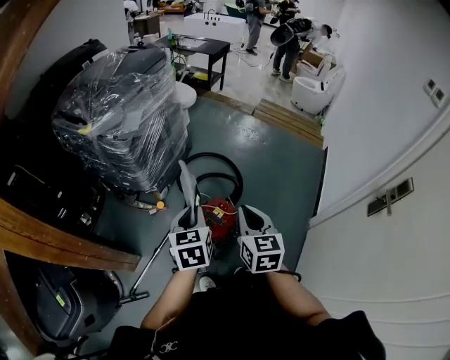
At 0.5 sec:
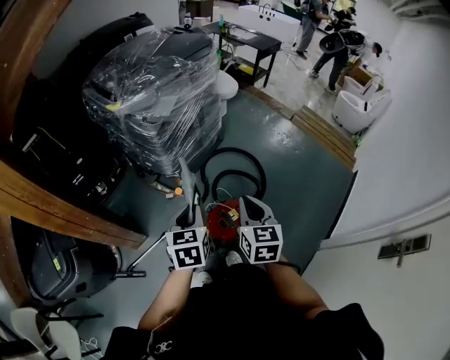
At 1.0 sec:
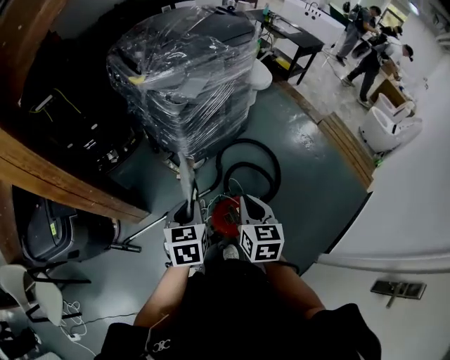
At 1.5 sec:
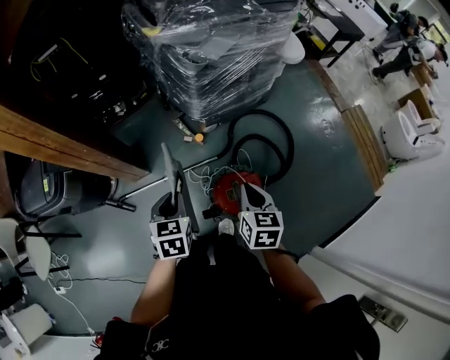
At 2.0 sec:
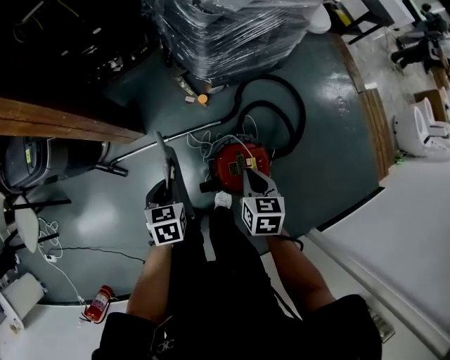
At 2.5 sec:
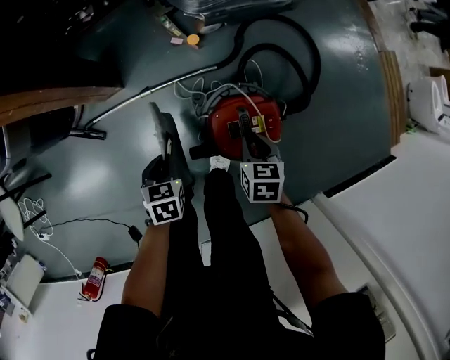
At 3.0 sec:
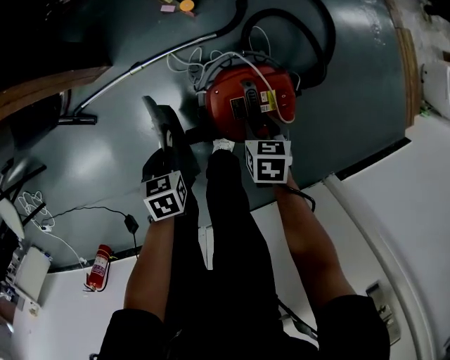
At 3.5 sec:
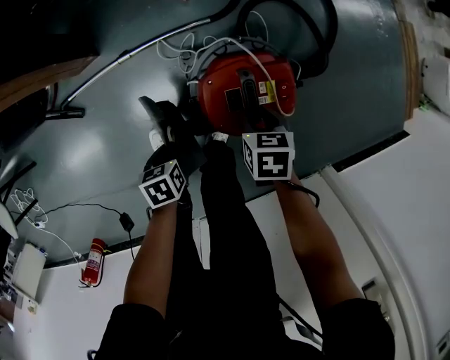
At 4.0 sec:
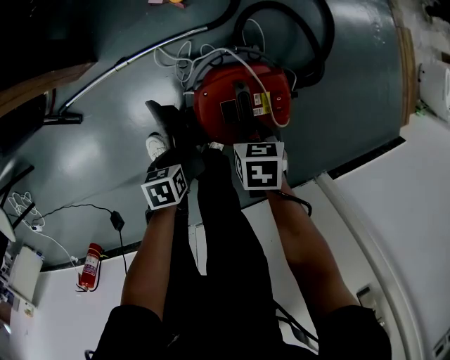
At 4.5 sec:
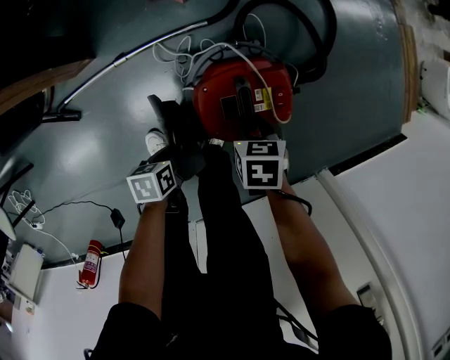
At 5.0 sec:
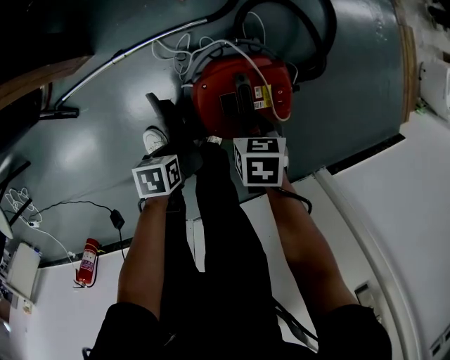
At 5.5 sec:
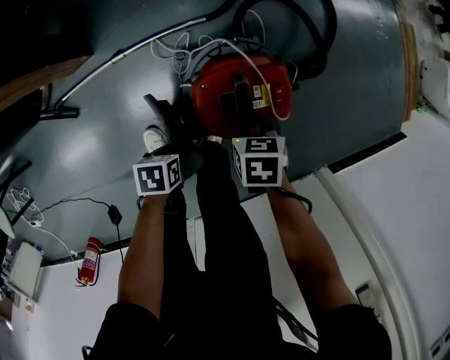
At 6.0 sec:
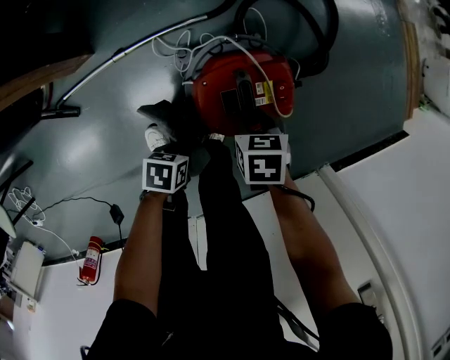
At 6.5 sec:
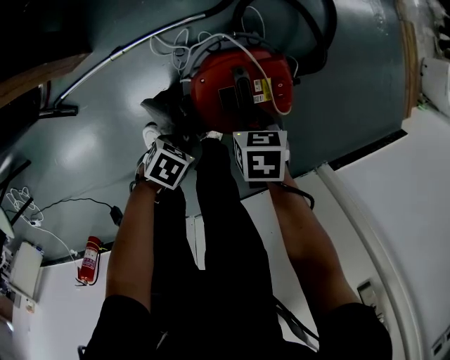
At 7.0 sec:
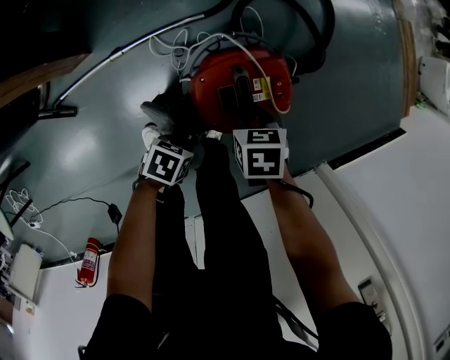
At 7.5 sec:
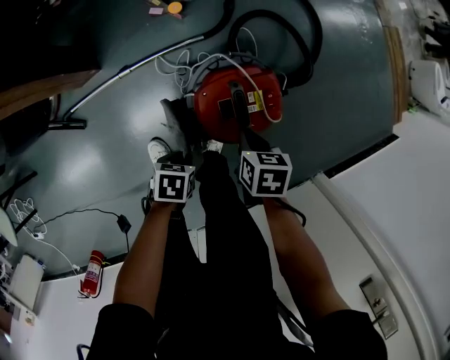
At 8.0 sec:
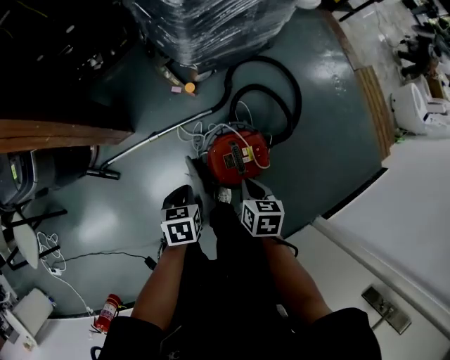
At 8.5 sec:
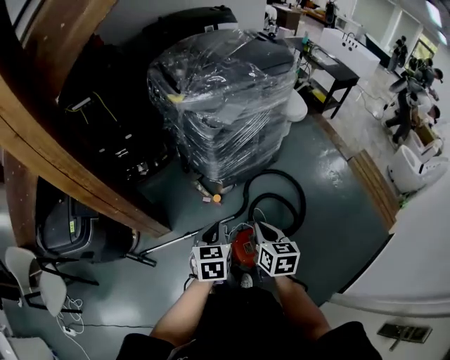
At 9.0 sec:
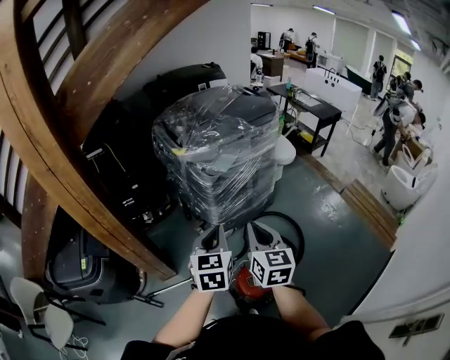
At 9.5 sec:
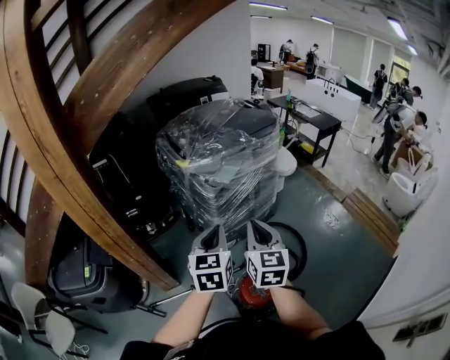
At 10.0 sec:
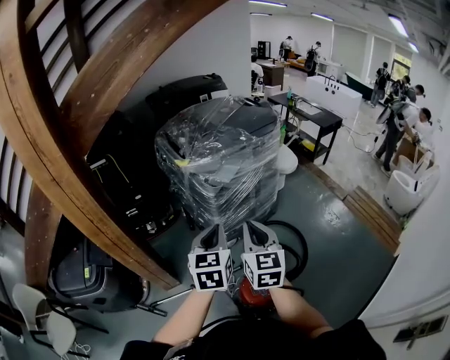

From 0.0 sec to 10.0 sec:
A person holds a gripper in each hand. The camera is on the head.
From 0.0 sec to 2.0 sec: The grippers both shift downward by about 25 cm. The right gripper changes its angle by approximately 50 degrees, while the left gripper rotates some 50 degrees.
From 2.0 sec to 4.0 sec: The grippers both shift downward by approximately 30 cm. The left gripper rotates about 30 degrees; the right gripper swivels about 30 degrees, and opens up.
From 4.0 sec to 6.0 sec: The left gripper turns by approximately 20 degrees.
From 6.0 sec to 8.0 sec: Both grippers travel together upward, some 25 cm. The right gripper rotates approximately 20 degrees, and closes. The left gripper changes its angle by approximately 30 degrees.
From 8.0 sec to 10.0 sec: Both grippers move upward, about 50 cm. The left gripper angles its fingers upward, by approximately 40 degrees, while the right gripper points its fingers approximately 50 degrees further upward.

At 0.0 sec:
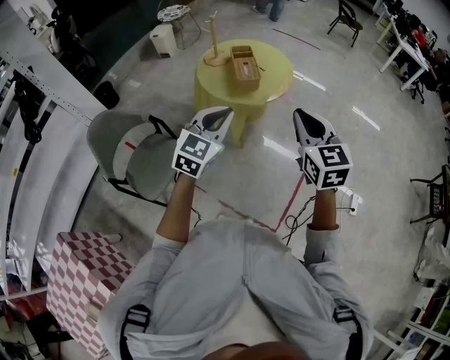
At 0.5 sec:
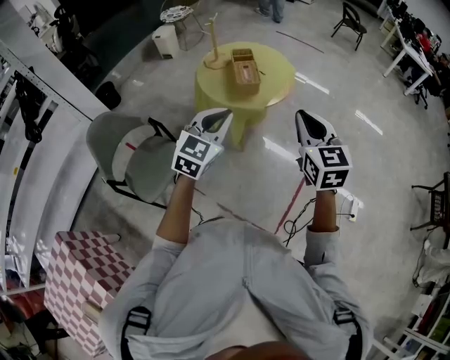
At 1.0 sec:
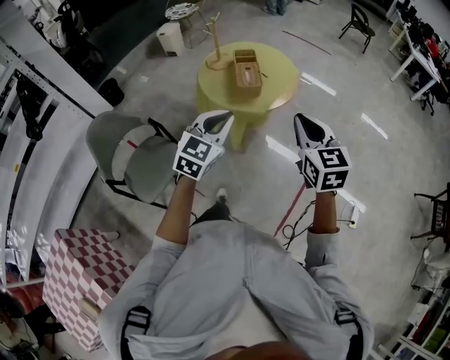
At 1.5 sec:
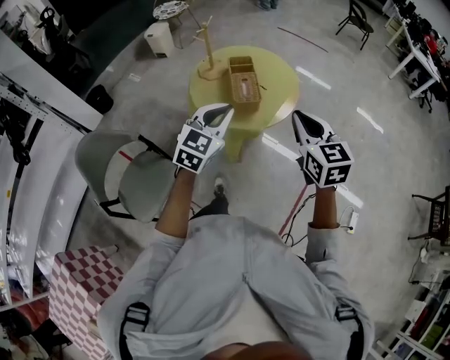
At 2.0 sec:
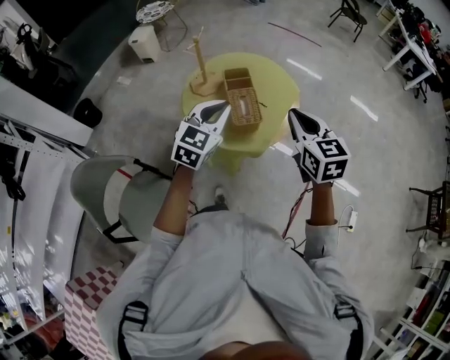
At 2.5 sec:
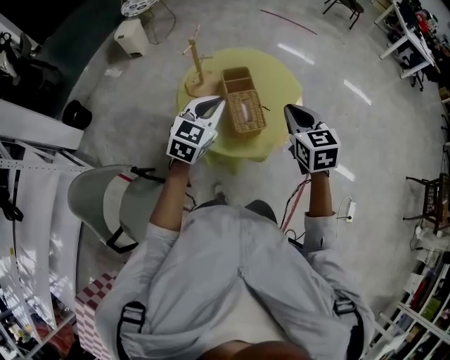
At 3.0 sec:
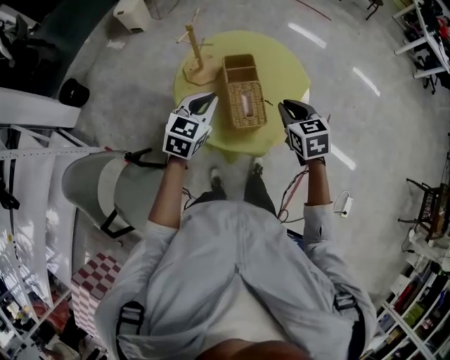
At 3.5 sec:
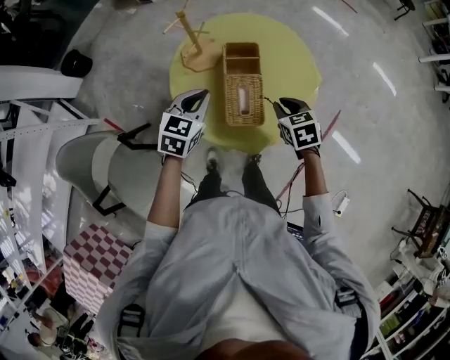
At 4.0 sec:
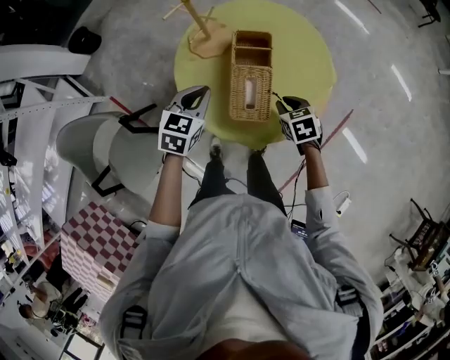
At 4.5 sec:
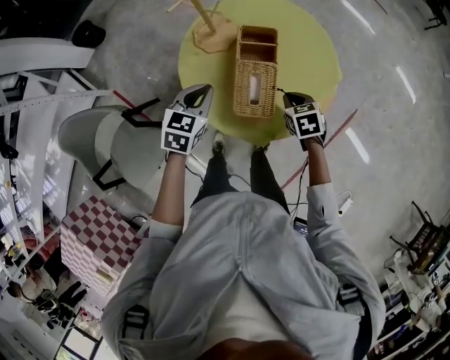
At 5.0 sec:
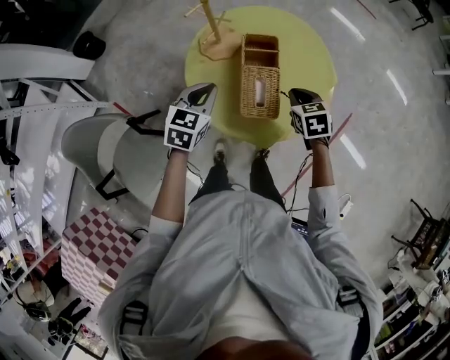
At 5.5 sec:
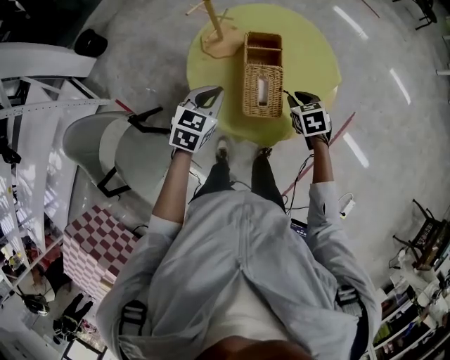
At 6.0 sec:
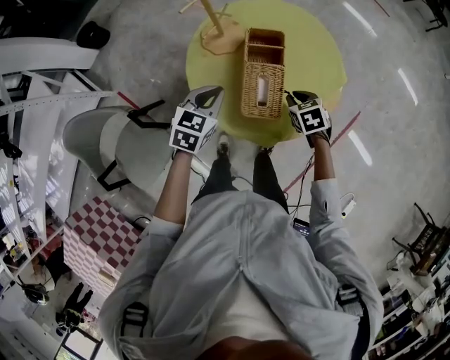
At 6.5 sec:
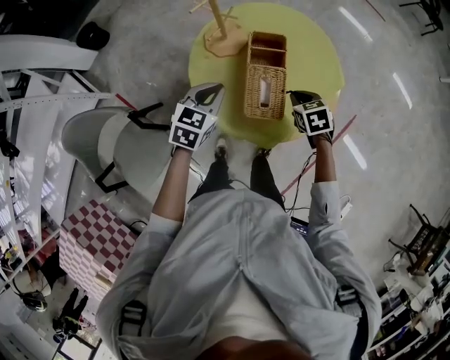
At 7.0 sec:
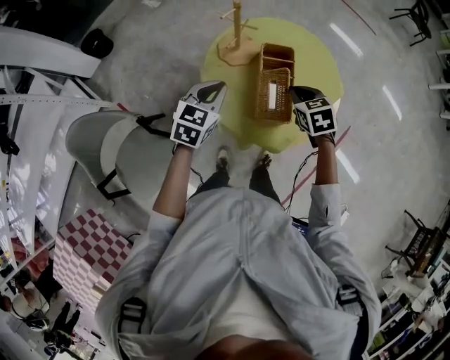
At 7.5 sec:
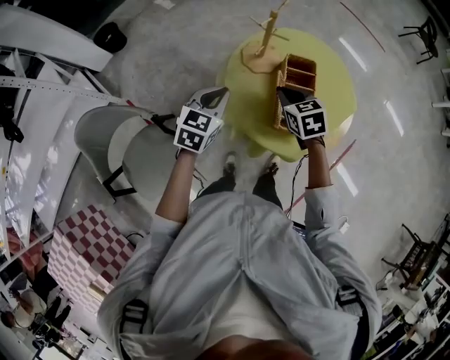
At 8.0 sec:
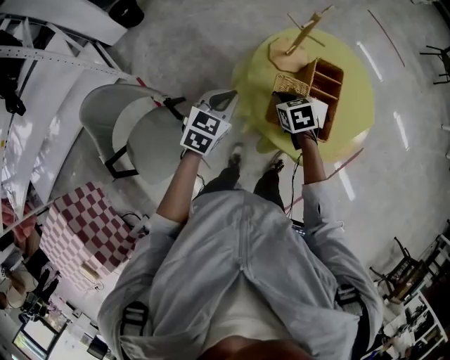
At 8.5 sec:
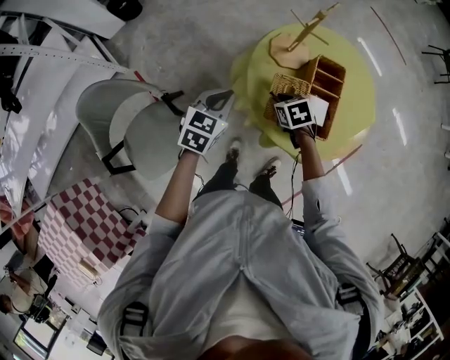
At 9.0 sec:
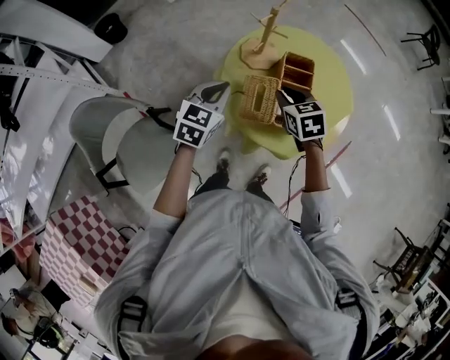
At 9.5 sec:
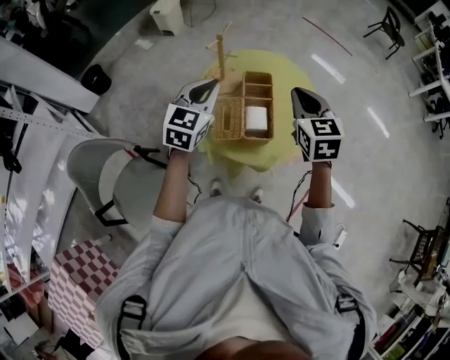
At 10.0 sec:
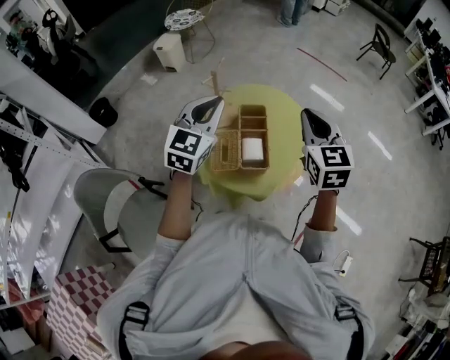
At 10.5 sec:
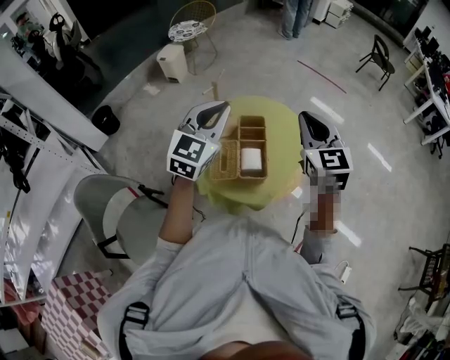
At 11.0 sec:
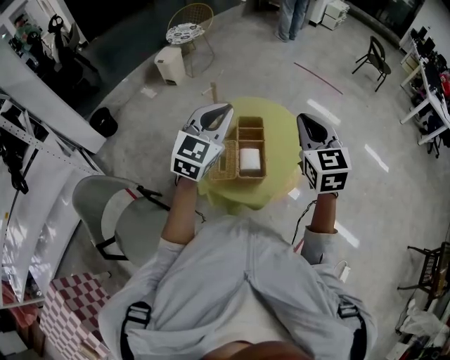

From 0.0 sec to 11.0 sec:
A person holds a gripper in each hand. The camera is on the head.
From 0.0 sec to 2.0 sec: Both grippers move forward, about 35 cm.
From 2.0 sec to 3.5 sec: Both grippers travel together downward and forward, approximately 30 cm. The right gripper tilts its fingers roughly 30 degrees downward. Meanwhile the left gripper swivels roughly 30 degrees.
From 3.5 sec to 5.5 sec: The right gripper goes up and down, approximately 10 cm each way, reversing 2 times.
From 5.5 sec to 7.5 sec: The left gripper shifts roughly 15 cm to the left, while the right gripper heads to the left and upward, covering about 25 cm.
From 7.5 sec to 9.0 sec: The right gripper reaches about 15 cm downward, then returns.
From 9.0 sec to 11.0 sec: The grippers both shift upward and to the right by about 30 cm. The right gripper angles its fingers upward, by approximately 30 degrees, while the left gripper rotates approximately 30 degrees.

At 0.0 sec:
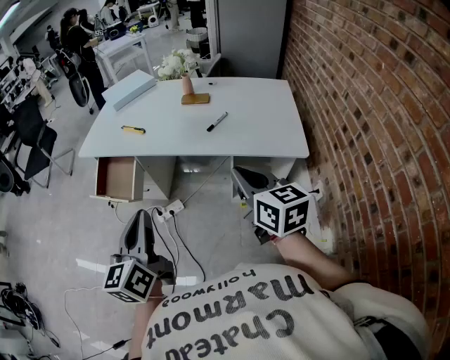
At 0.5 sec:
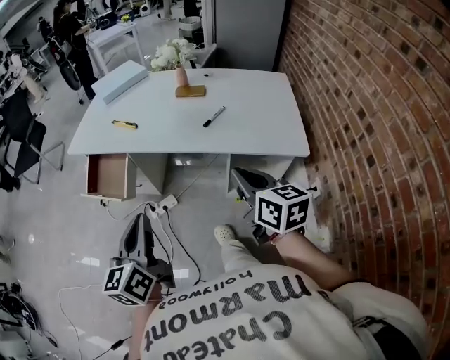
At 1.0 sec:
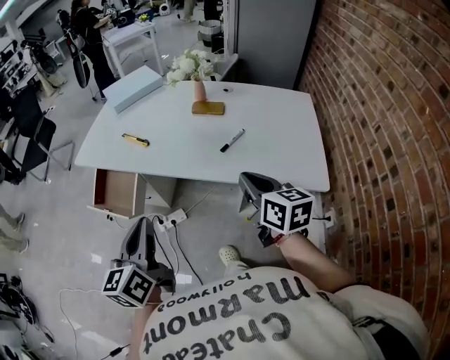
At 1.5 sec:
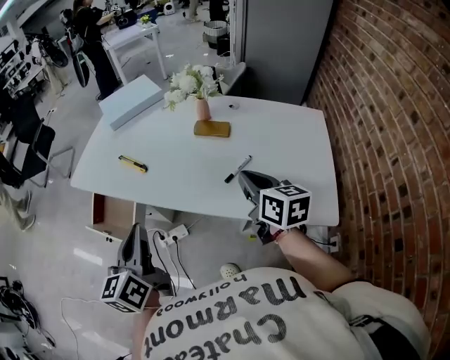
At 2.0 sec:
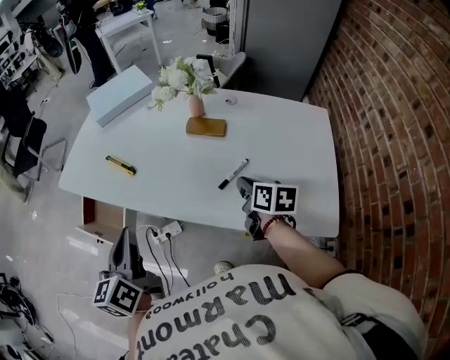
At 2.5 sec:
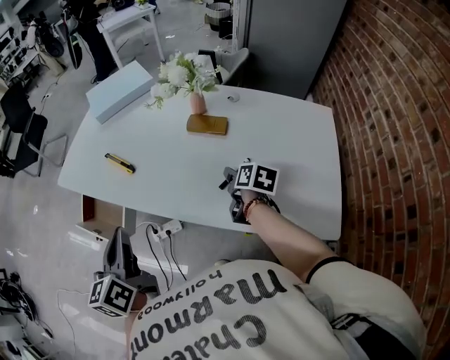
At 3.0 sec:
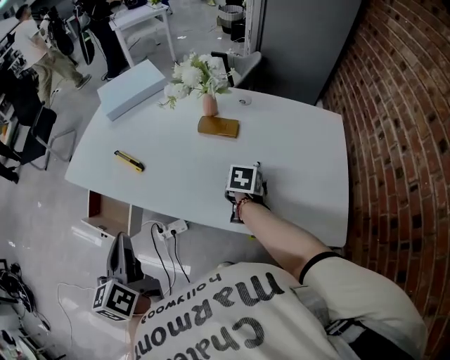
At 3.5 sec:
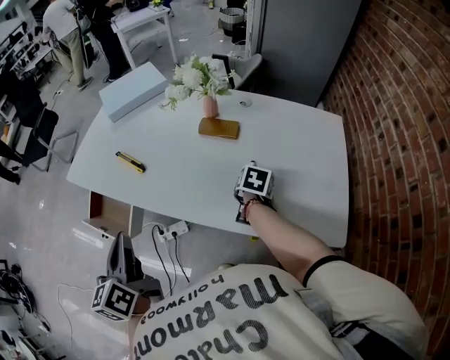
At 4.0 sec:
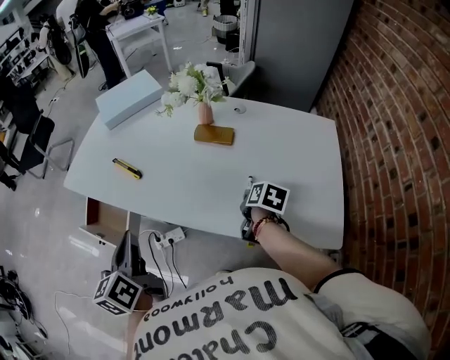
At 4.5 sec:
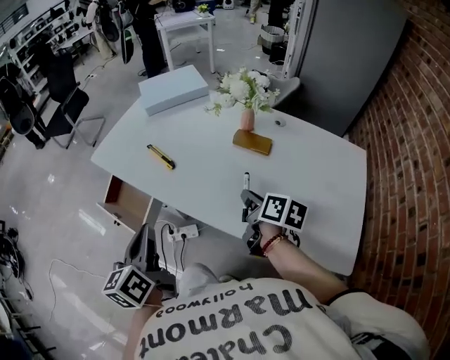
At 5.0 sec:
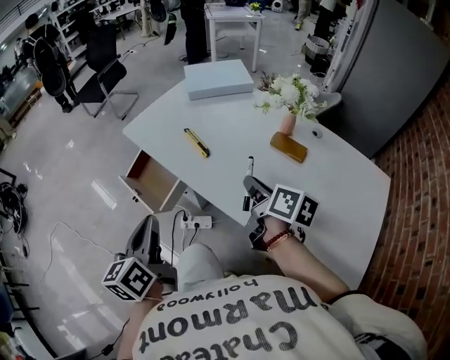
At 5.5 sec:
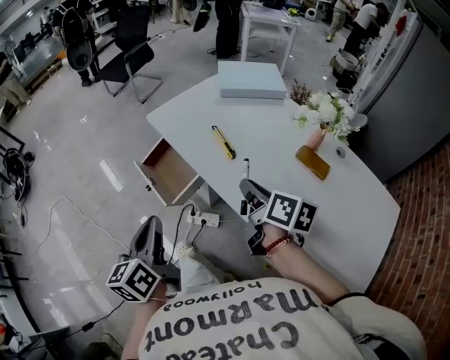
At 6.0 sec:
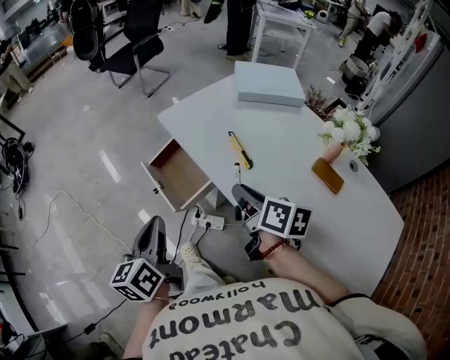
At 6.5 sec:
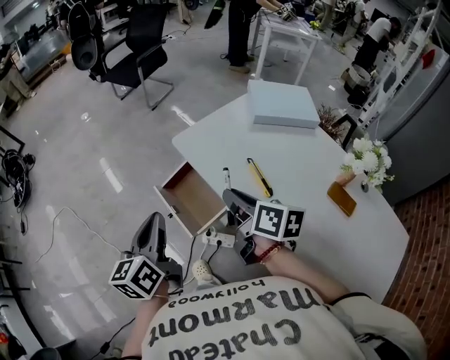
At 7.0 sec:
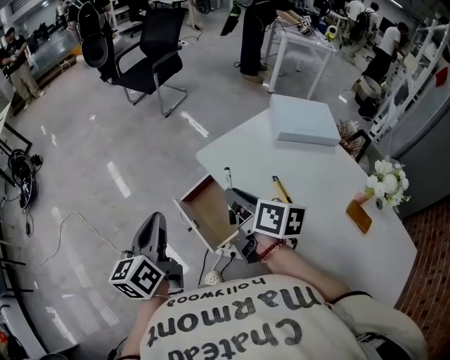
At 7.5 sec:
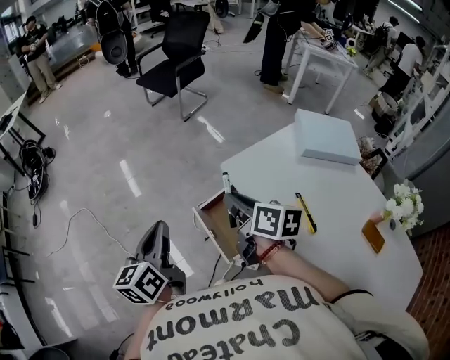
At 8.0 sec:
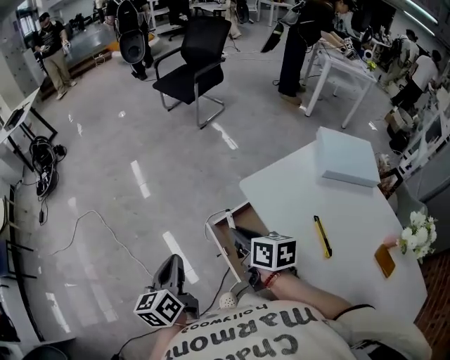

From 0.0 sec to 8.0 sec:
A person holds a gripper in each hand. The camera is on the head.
From 0.0 sec to 2.0 sec: The right gripper shifts approximately 40 cm forward and downward, and rotates approximately 30 degrees. The left gripper travels forward by approximately 30 cm.
From 2.0 sec to 4.0 sec: The right gripper heads downward, covering some 5 cm, swivels approximately 20 degrees, and opens and closes again.
From 4.0 sec to 6.0 sec: The left gripper changes place by some 20 cm, and rotates some 30 degrees; the right gripper moves approximately 40 cm, and turns by roughly 50 degrees.
From 6.0 sec to 8.0 sec: The grippers both shift forward and to the left by approximately 30 cm. The right gripper rotates about 30 degrees.
